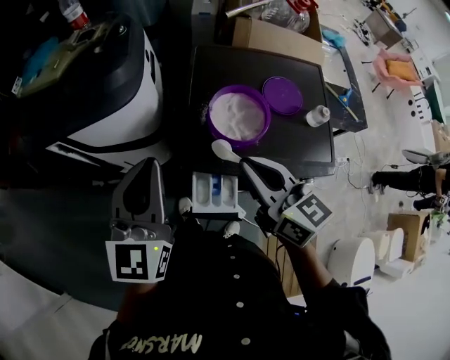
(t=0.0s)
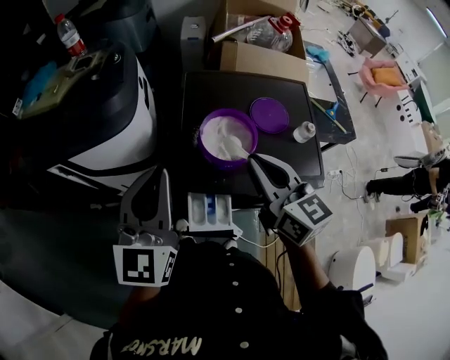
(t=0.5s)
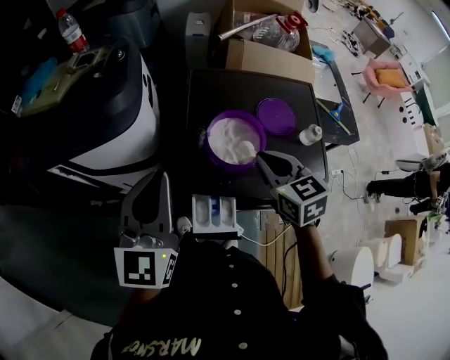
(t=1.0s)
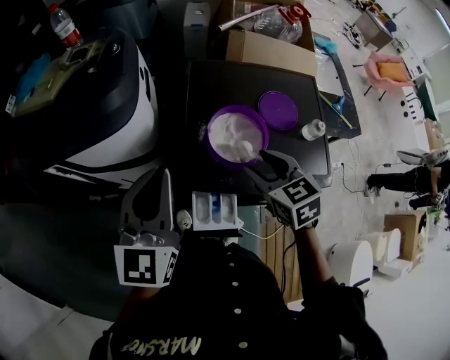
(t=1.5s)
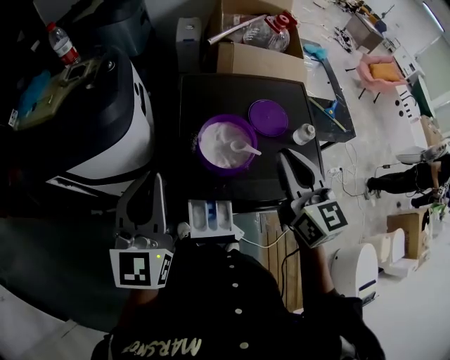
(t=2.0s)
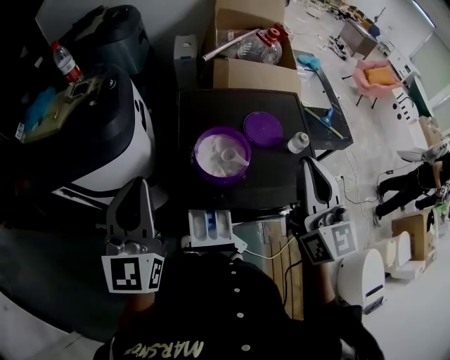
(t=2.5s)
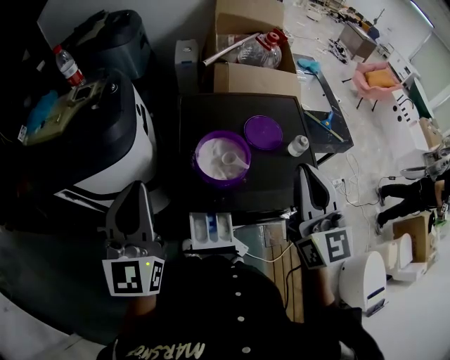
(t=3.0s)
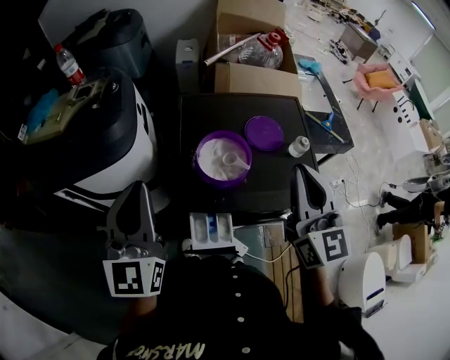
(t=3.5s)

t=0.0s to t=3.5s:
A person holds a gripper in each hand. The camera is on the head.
t=0.0s to t=2.0s: The right gripper is displaced to the right and upward by about 10 cm, swivels roughly 20 degrees, and opens, then closes again.
t=2.0s to t=3.5s: The right gripper shifts some 5 cm upward.

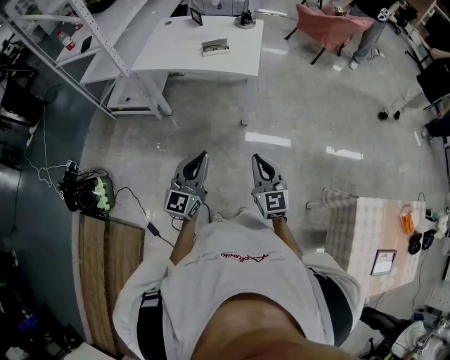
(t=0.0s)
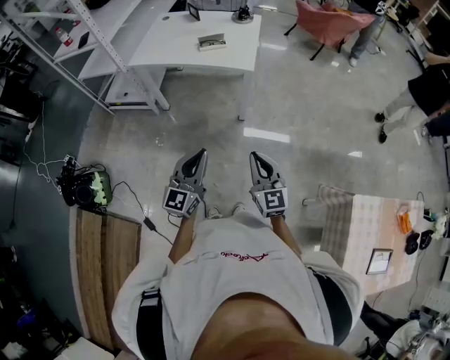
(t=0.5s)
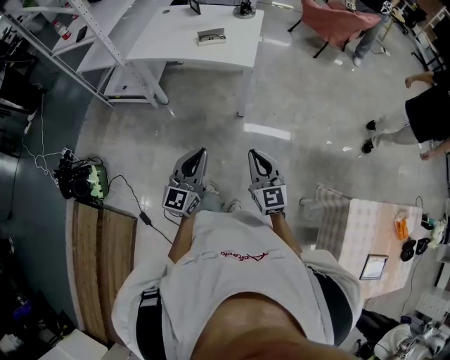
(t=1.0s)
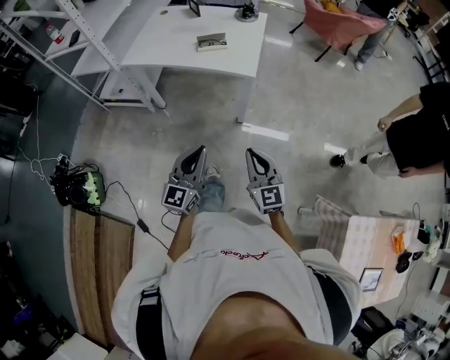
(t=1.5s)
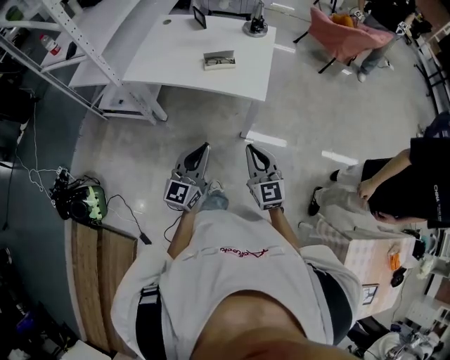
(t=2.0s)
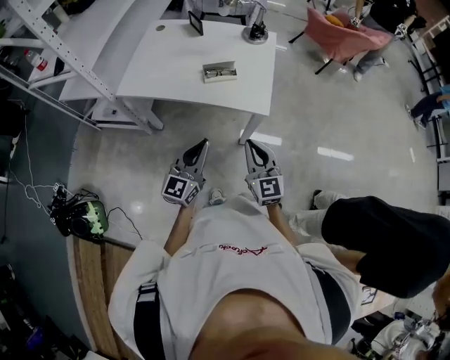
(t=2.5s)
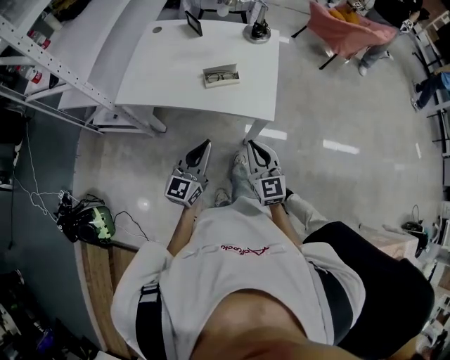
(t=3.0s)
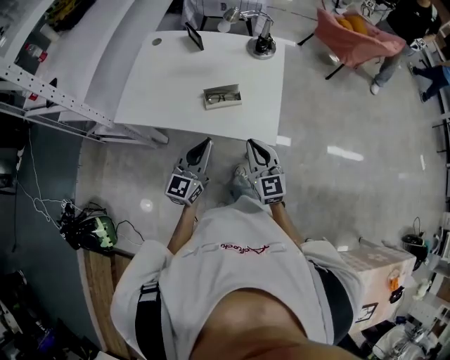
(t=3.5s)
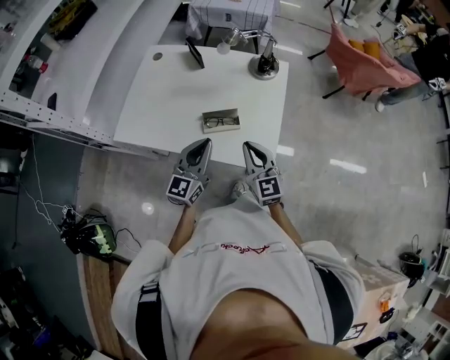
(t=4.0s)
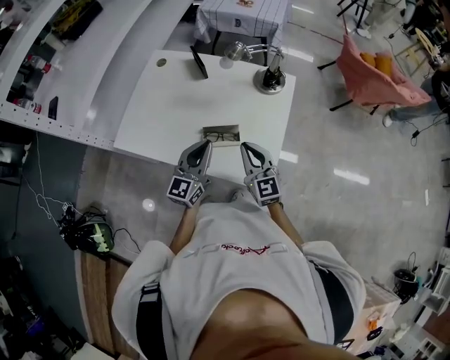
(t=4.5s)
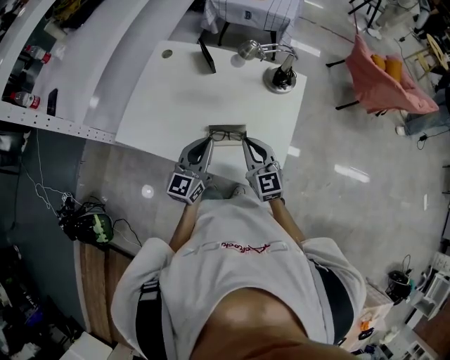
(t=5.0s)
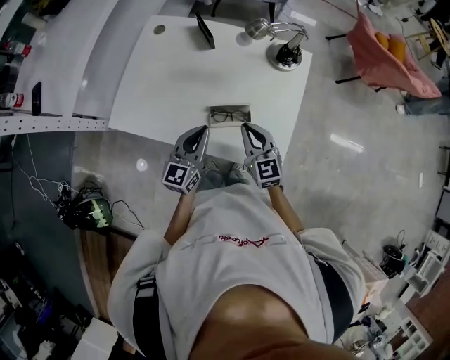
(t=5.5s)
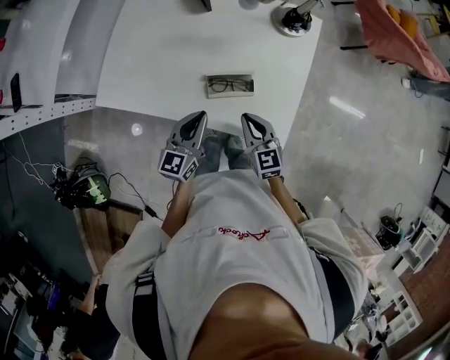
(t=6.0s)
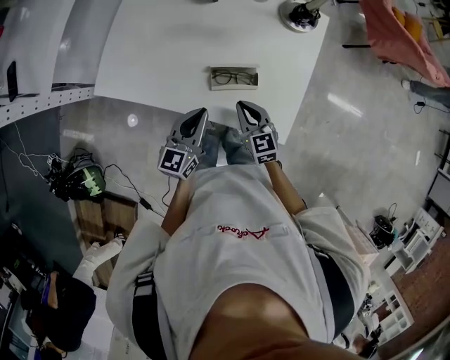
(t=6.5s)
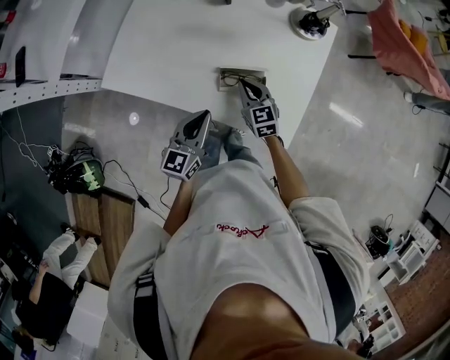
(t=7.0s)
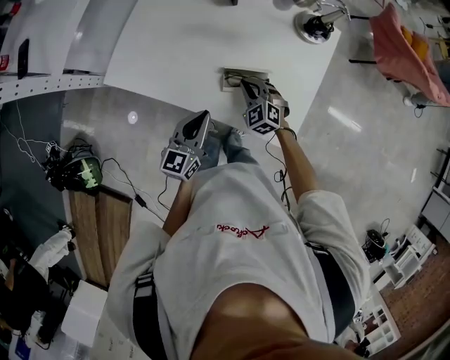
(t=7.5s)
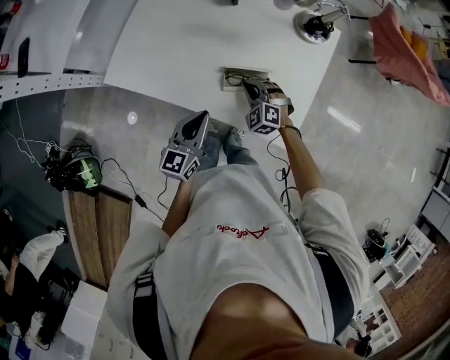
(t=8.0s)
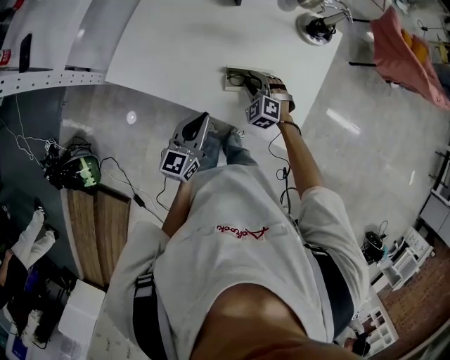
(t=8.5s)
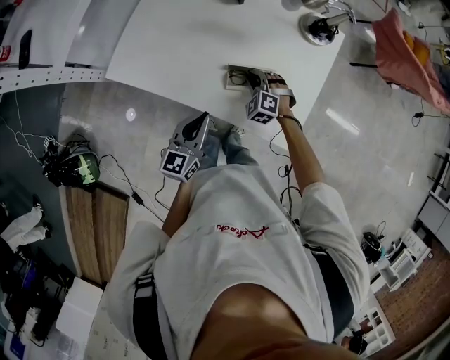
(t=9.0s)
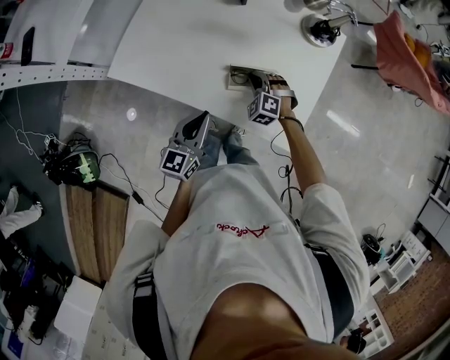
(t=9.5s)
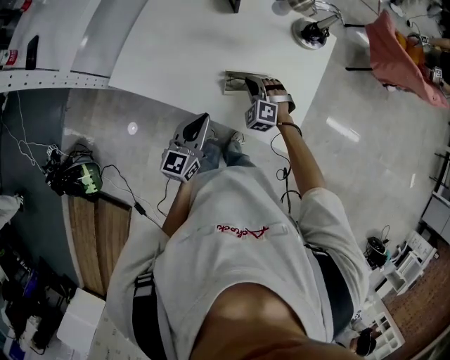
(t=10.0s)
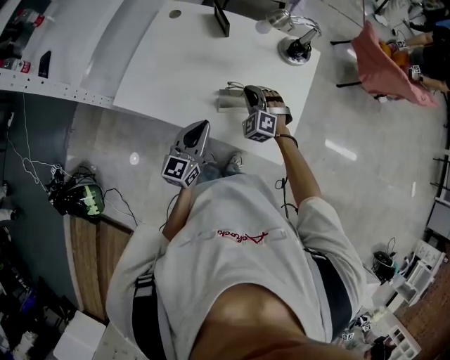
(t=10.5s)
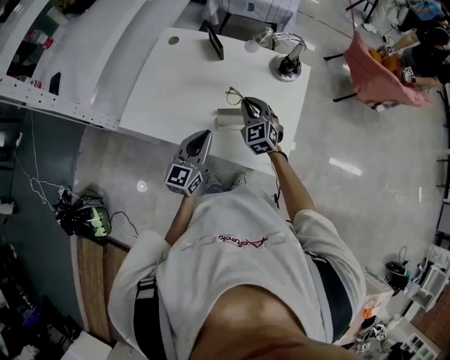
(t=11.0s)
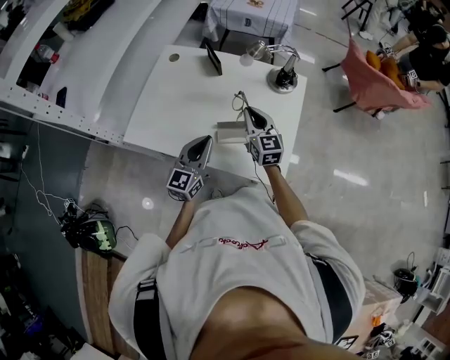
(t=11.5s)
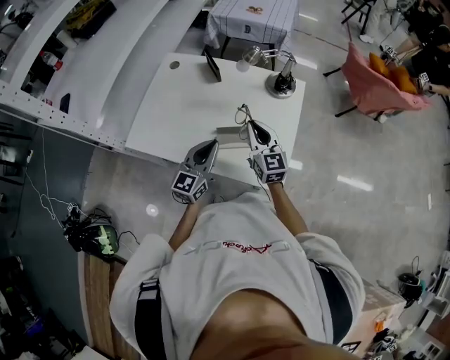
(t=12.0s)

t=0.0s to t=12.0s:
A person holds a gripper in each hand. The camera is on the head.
t=0.0s to t=2.0s: Both grippers move forward, approximately 20 cm.
t=2.0s to t=4.0s: Both grippers move forward, some 35 cm.
t=4.0s to t=6.0s: Both grippers move downward, approximately 10 cm. The right gripper changes its angle by roughly 20 degrees.
t=6.0s to t=8.0s: The right gripper shifts about 10 cm downward and forward, and rotates around the line of its fingers by roughly 50 degrees, counterclockwise from behind.
t=8.0s to t=10.0s: The right gripper opens, then closes once more.
t=10.0s to t=12.0s: The left gripper goes roughly 10 cm upward and to the right, while the right gripper is displaced upward by about 20 cm, and rolls clockwise, seen from behind, by roughly 60 degrees.

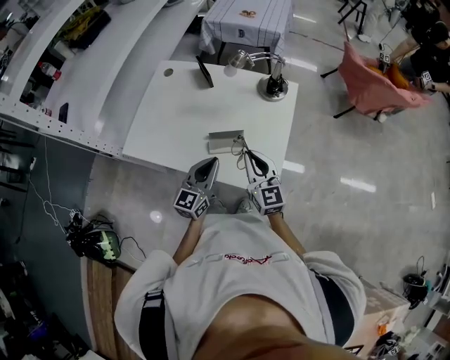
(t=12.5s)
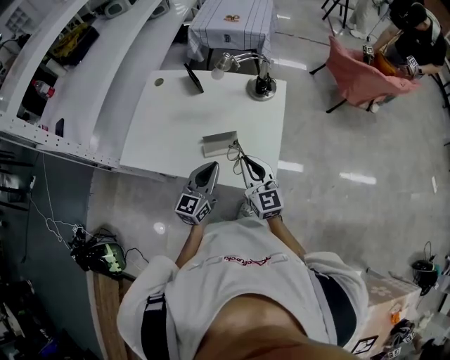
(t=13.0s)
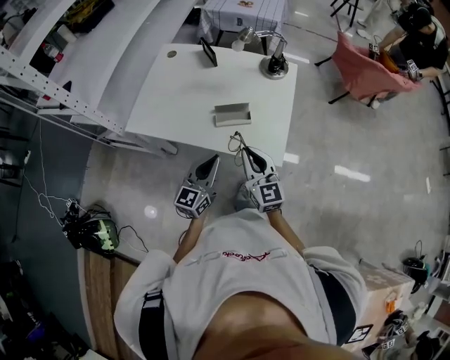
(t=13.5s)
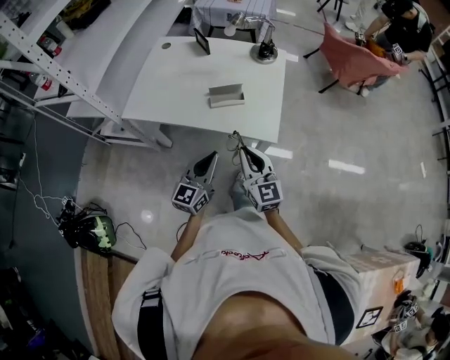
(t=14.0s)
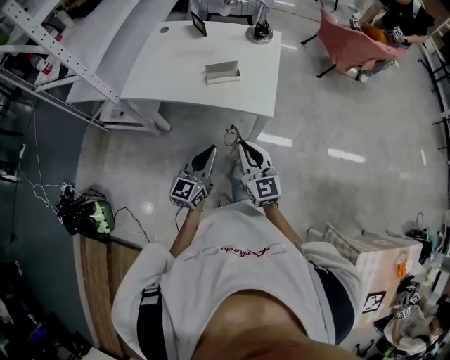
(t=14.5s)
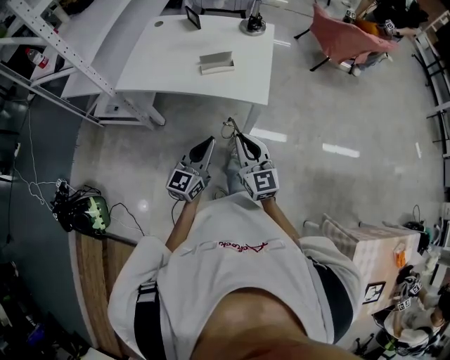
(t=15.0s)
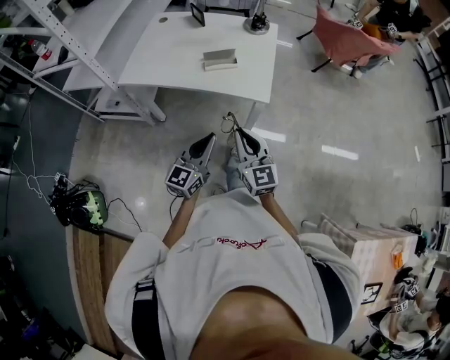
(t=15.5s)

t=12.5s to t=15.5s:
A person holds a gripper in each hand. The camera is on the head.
t=12.5s to t=14.0s: The two grippers go some 20 cm backward.
t=14.0s to t=15.5s: The grippers both shift backward by approximately 10 cm.

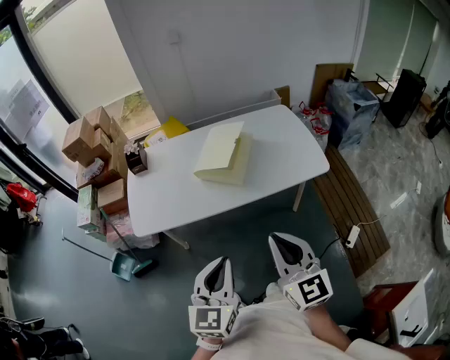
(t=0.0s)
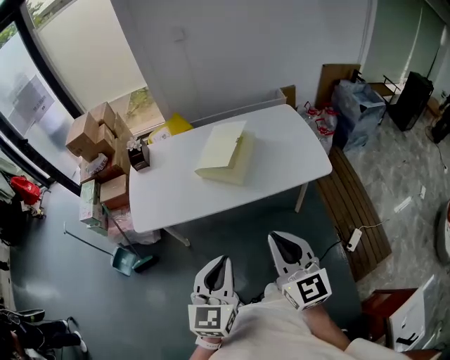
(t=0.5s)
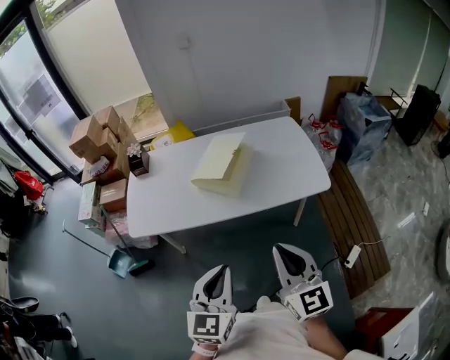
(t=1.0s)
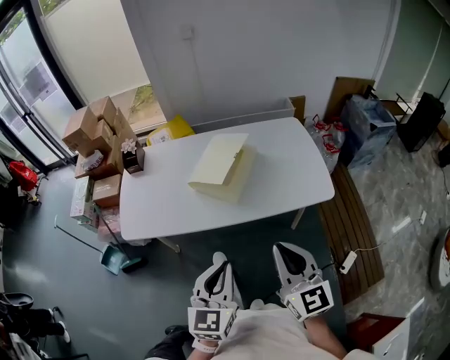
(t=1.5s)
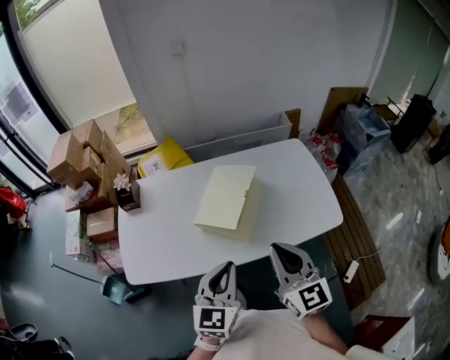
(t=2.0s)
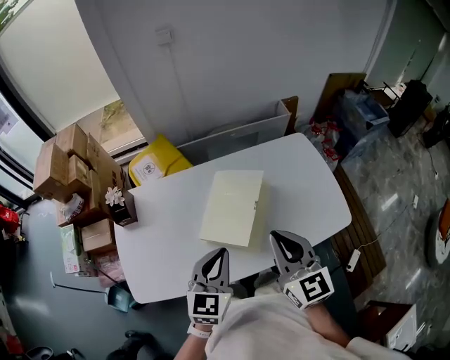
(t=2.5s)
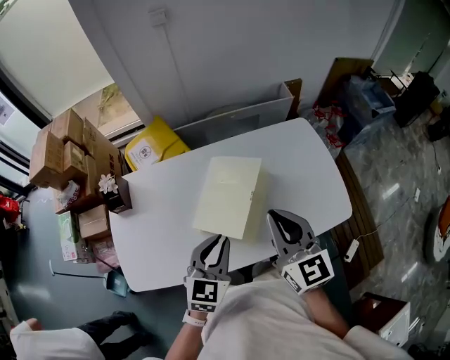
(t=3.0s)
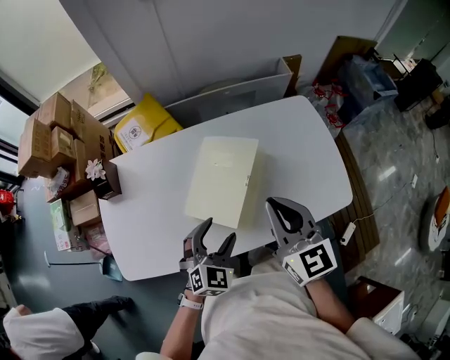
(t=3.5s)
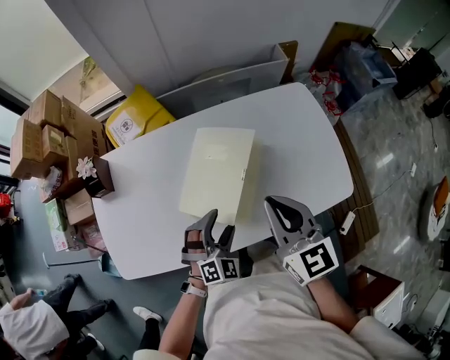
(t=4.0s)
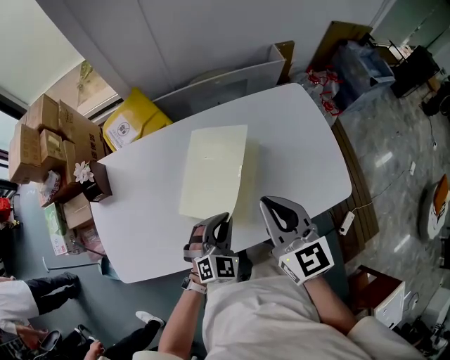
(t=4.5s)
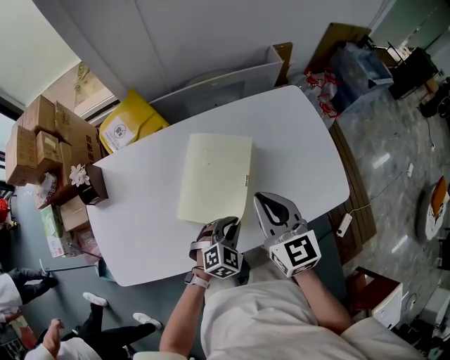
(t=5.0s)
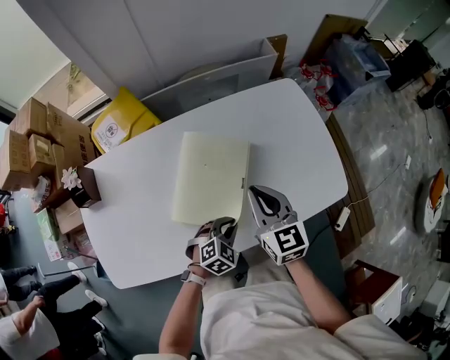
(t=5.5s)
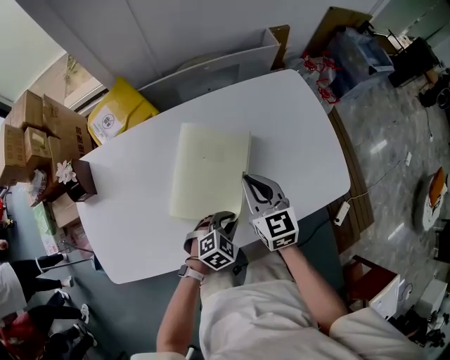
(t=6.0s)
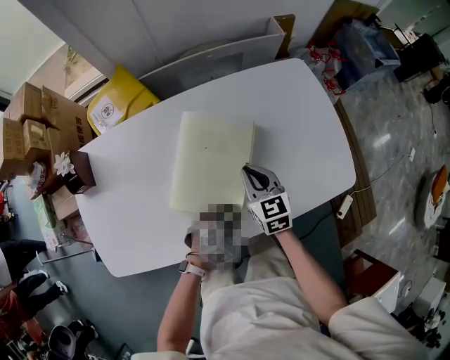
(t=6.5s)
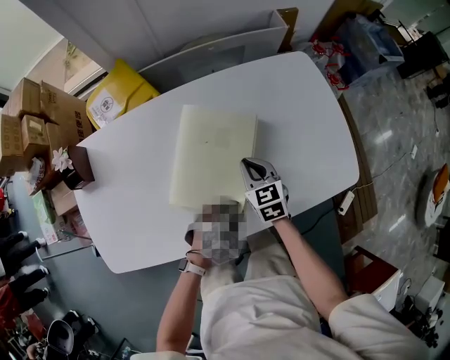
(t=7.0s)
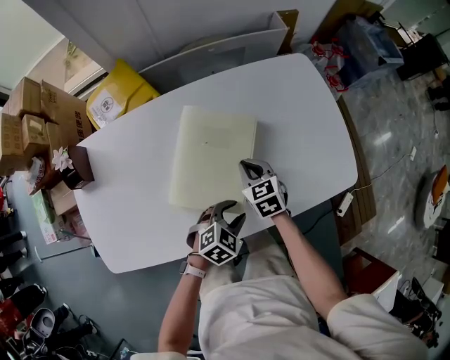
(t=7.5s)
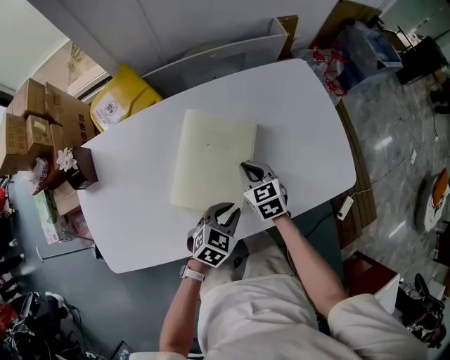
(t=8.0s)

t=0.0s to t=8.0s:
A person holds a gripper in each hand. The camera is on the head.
t=0.0s to t=2.0s: Both grippers move forward, about 25 cm.
t=2.0s to t=4.0s: The left gripper moves downward and forward, about 25 cm, twists roughly 50 degrees clockwise, seen from behind, and opens its fingers; the right gripper heads forward, covering about 15 cm.
t=4.0s to t=6.0s: The left gripper travels downward and to the right by roughly 15 cm, turns by approximately 40 degrees, and closes. Meanwhile the right gripper heads downward and forward, covering approximately 15 cm.
t=6.0s to t=8.0s: The right gripper goes about 10 cm downward.
